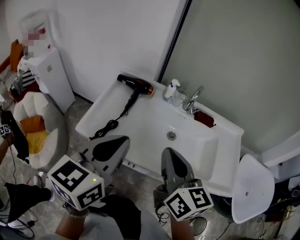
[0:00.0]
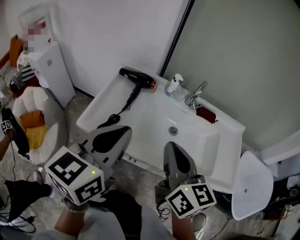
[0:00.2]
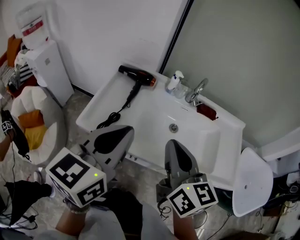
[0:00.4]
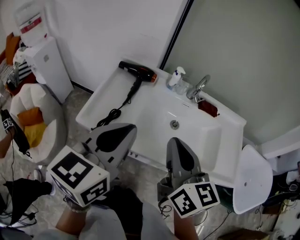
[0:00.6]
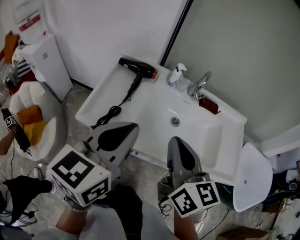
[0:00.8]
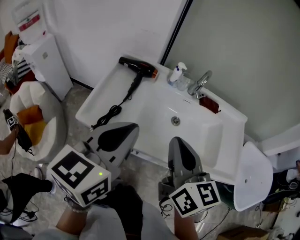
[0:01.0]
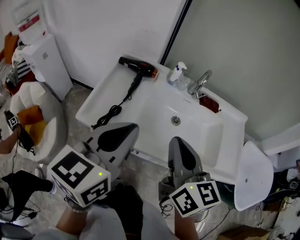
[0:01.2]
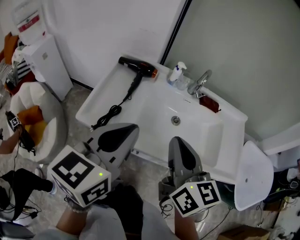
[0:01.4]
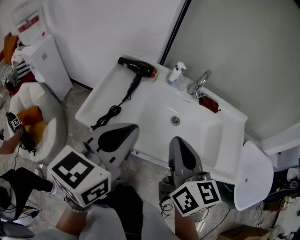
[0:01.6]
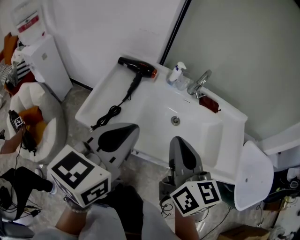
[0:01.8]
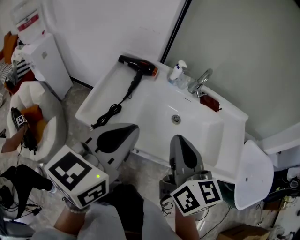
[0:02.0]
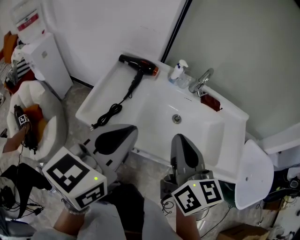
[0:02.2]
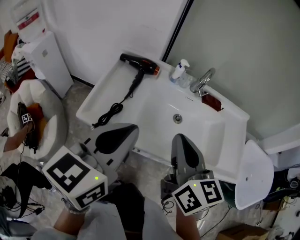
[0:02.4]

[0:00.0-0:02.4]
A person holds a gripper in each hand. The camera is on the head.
0:00.0 to 0:01.2: There are only small adjustments of the grippers.
0:01.2 to 0:02.4: Both grippers stay about where they are.

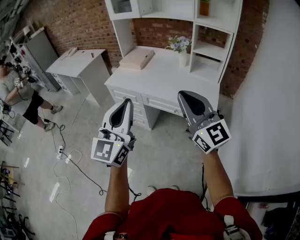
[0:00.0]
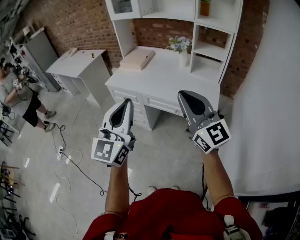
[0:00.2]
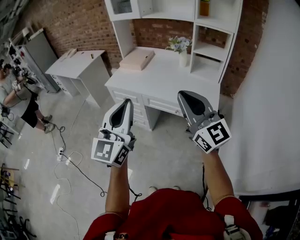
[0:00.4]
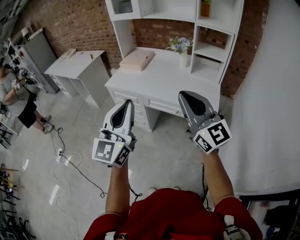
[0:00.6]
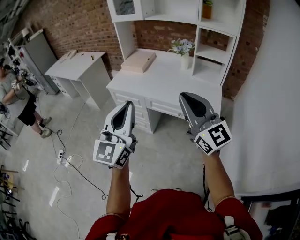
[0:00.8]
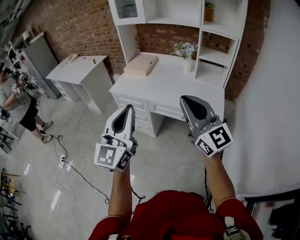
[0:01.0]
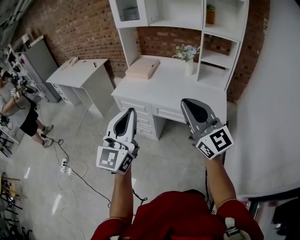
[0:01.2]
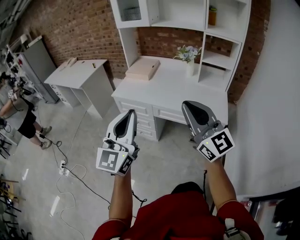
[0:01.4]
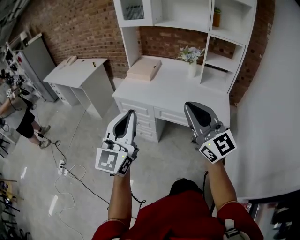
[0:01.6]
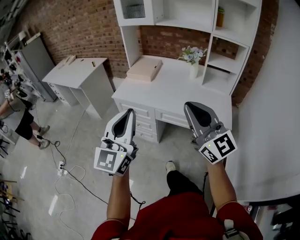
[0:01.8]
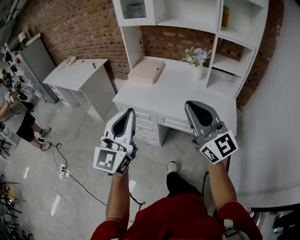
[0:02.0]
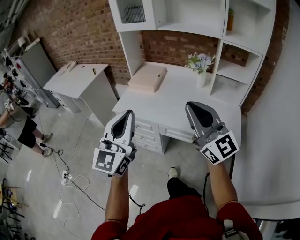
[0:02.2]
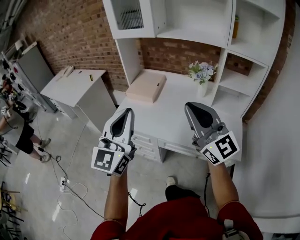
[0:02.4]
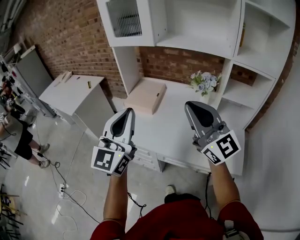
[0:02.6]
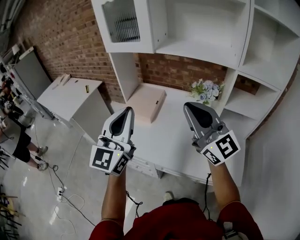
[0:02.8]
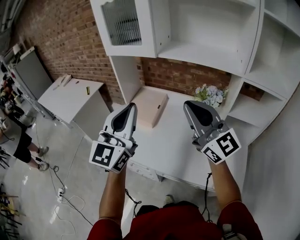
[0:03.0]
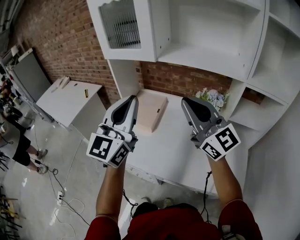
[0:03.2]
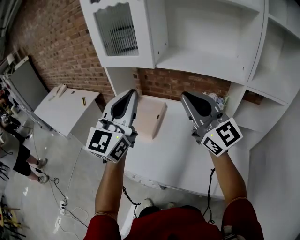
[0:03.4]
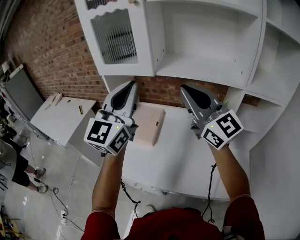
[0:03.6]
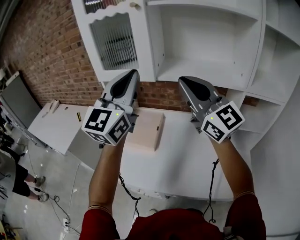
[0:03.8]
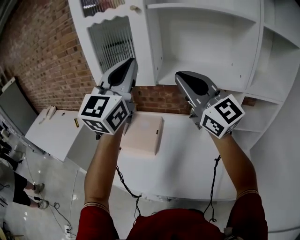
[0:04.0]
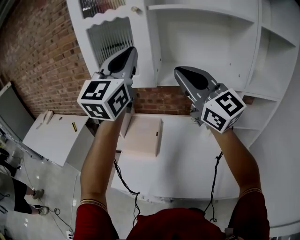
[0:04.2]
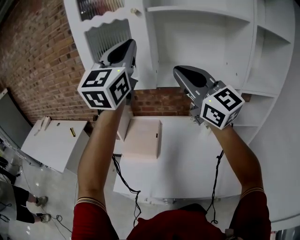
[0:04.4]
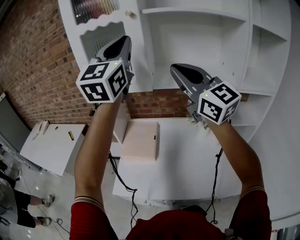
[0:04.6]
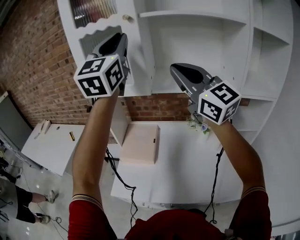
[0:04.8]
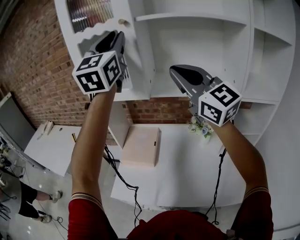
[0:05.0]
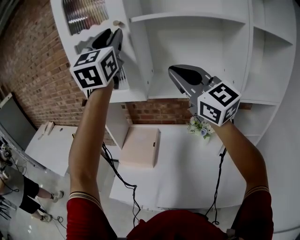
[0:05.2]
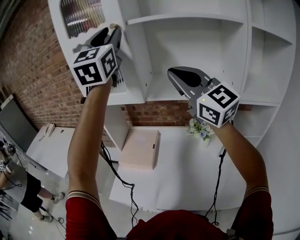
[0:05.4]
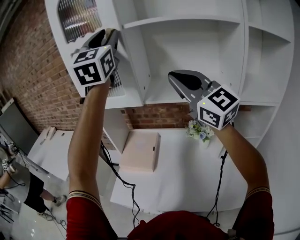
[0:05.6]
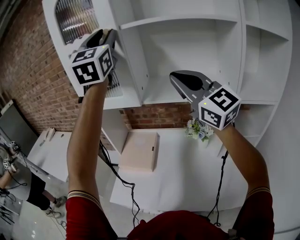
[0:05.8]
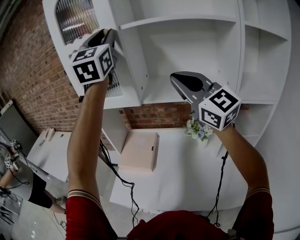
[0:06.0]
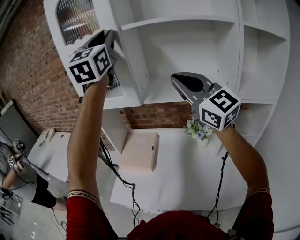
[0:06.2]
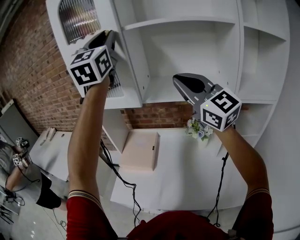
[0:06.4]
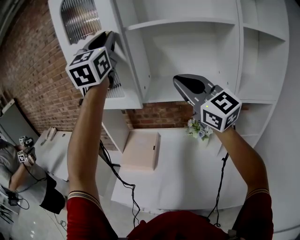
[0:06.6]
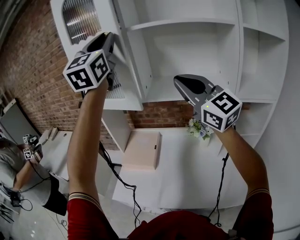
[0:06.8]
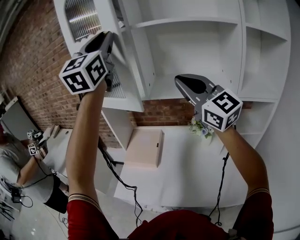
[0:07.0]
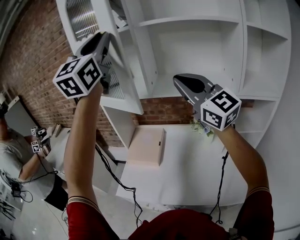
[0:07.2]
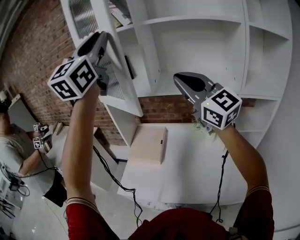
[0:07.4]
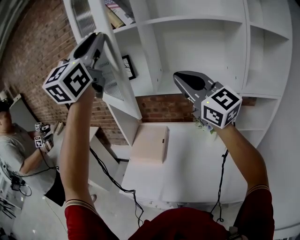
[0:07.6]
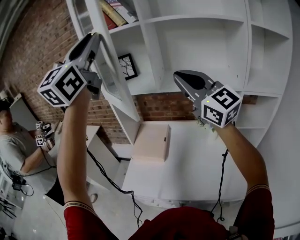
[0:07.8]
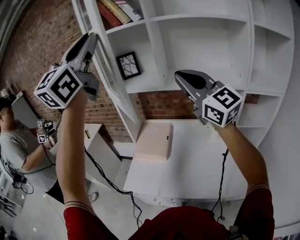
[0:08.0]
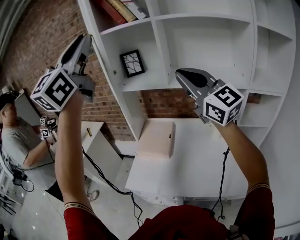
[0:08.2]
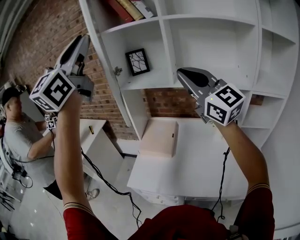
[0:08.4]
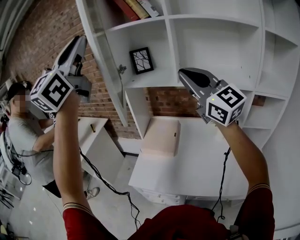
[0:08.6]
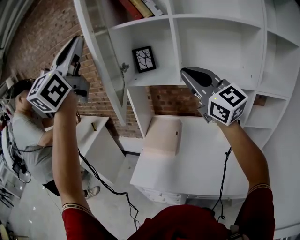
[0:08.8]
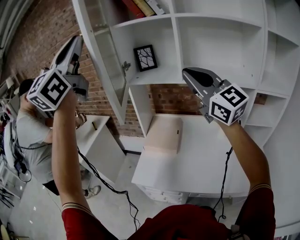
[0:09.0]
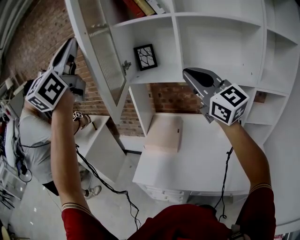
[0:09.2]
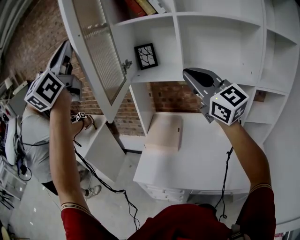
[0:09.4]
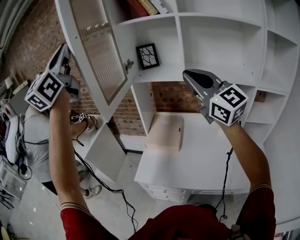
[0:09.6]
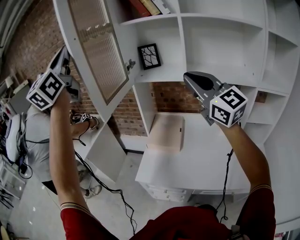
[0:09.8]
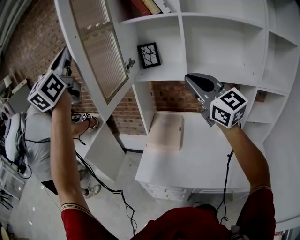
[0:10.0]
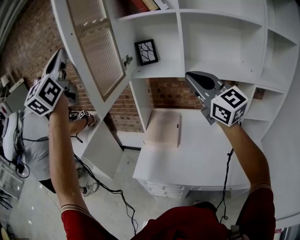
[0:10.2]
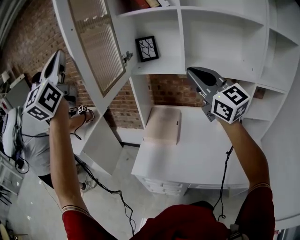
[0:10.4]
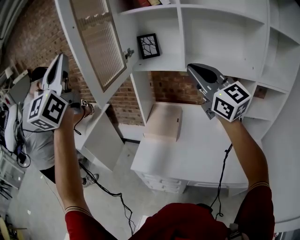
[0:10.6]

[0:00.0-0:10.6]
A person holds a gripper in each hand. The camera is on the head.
0:00.0 to 0:01.6: Both grippers travel together to the left and forward, about 15 cm.
0:01.6 to 0:03.0: Both grippers are carried forward, roughly 50 cm.
0:03.0 to 0:04.6: The right gripper moves forward and upward, some 20 cm. Meanwhile the left gripper shifts approximately 35 cm upward and forward.
0:04.6 to 0:06.0: The right gripper goes about 5 cm to the right. The left gripper is displaced upward and forward by approximately 10 cm.
0:06.0 to 0:07.6: The right gripper goes about 5 cm to the left. Meanwhile the left gripper is displaced backward and to the left by approximately 15 cm.
0:07.6 to 0:09.0: The left gripper is displaced to the left by roughly 20 cm. The right gripper travels to the left by approximately 10 cm.
0:09.0 to 0:10.6: The left gripper is displaced to the left and downward by approximately 10 cm.

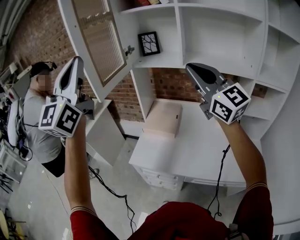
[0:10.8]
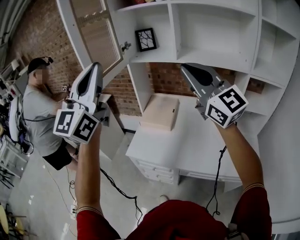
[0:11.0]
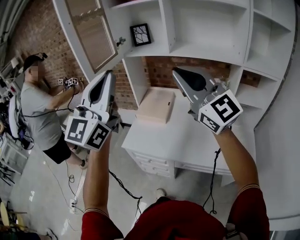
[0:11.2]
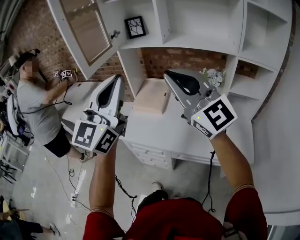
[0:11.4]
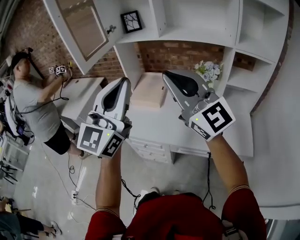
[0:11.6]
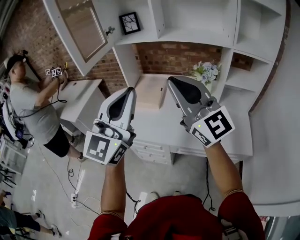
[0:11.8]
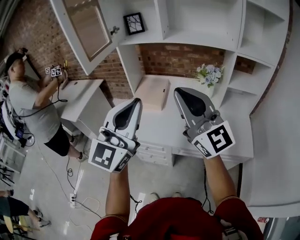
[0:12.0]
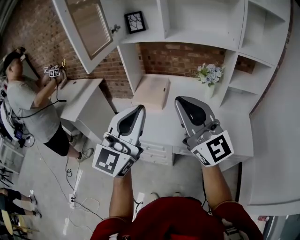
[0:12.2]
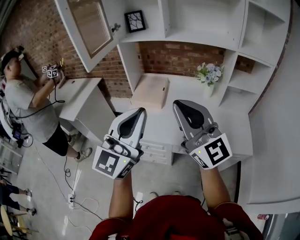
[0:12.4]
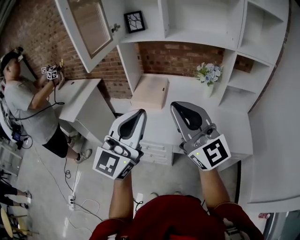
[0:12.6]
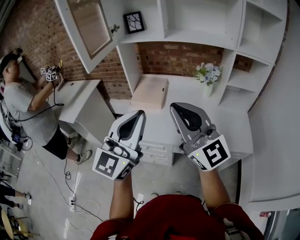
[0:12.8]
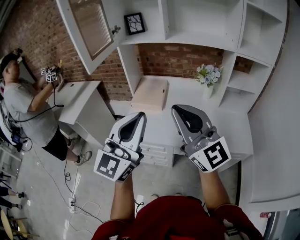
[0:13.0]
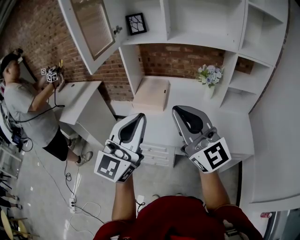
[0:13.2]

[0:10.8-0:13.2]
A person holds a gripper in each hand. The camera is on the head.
0:10.8 to 0:12.0: The left gripper moves downward, to the right and backward, some 35 cm, and swivels some 20 degrees. The right gripper is displaced backward and downward by some 20 cm.
0:12.0 to 0:13.2: The left gripper shifts by roughly 5 cm, while the right gripper travels to the left by roughly 5 cm.

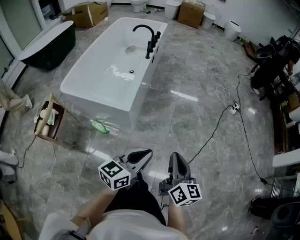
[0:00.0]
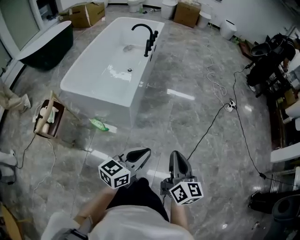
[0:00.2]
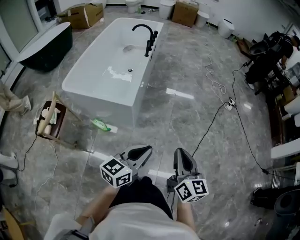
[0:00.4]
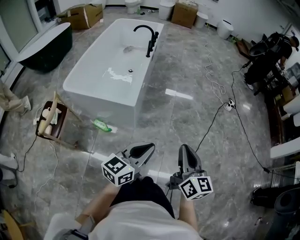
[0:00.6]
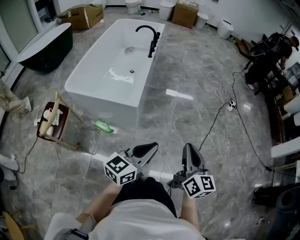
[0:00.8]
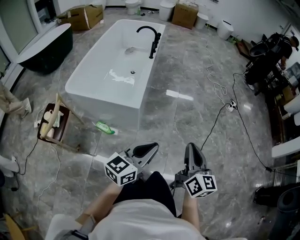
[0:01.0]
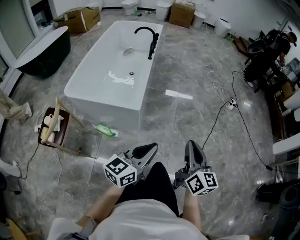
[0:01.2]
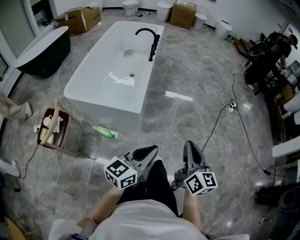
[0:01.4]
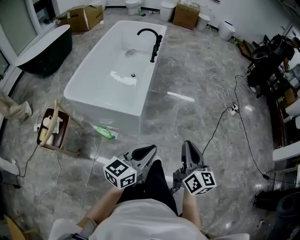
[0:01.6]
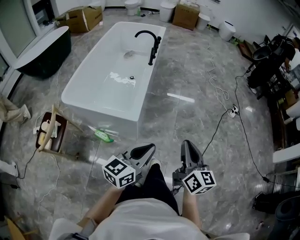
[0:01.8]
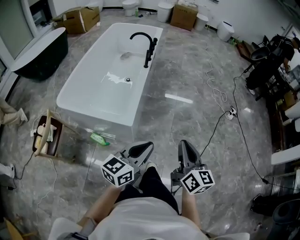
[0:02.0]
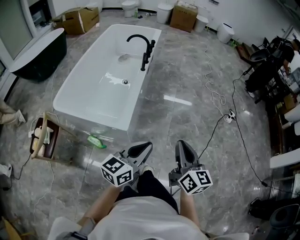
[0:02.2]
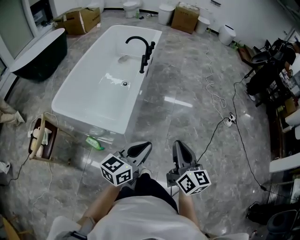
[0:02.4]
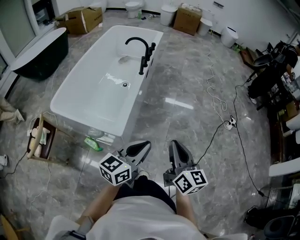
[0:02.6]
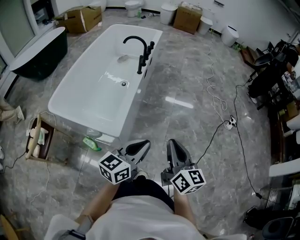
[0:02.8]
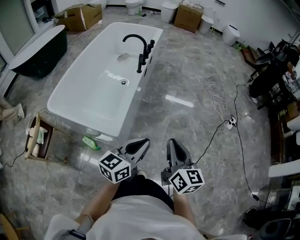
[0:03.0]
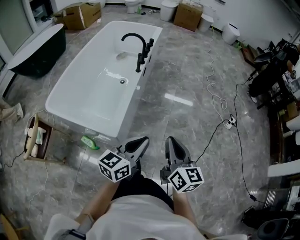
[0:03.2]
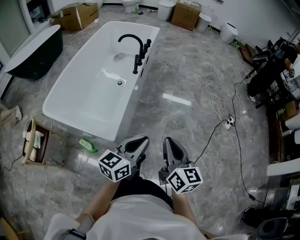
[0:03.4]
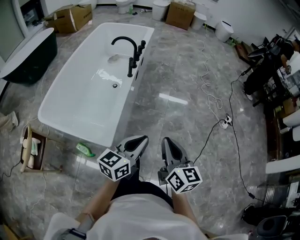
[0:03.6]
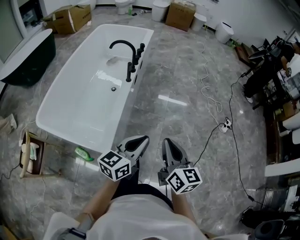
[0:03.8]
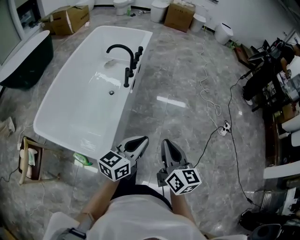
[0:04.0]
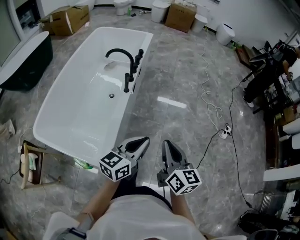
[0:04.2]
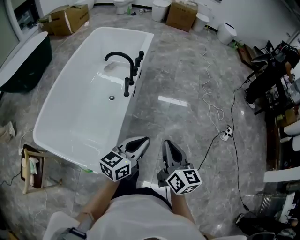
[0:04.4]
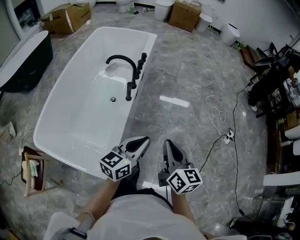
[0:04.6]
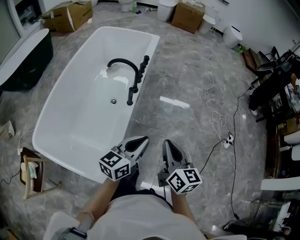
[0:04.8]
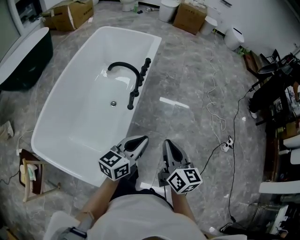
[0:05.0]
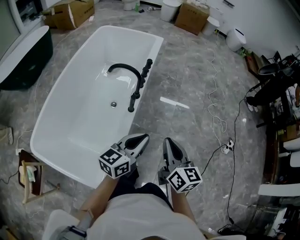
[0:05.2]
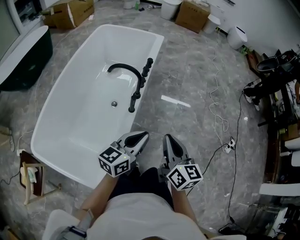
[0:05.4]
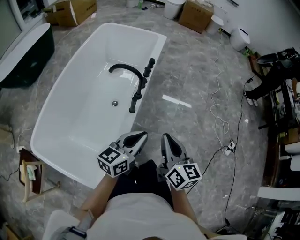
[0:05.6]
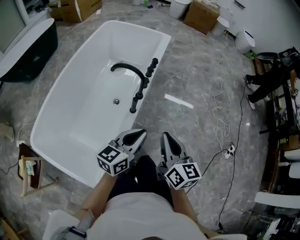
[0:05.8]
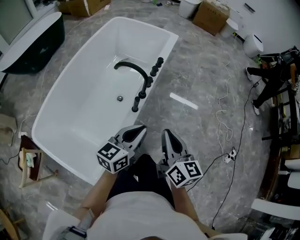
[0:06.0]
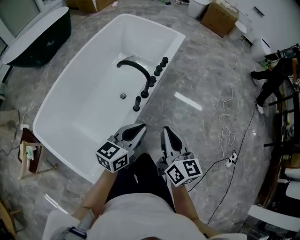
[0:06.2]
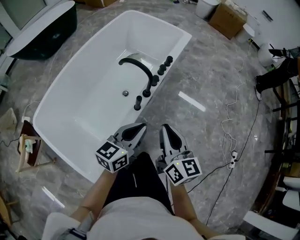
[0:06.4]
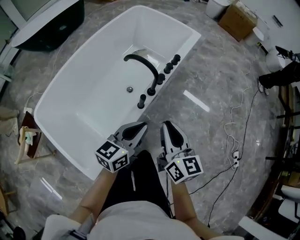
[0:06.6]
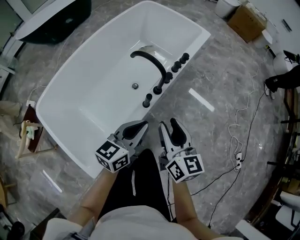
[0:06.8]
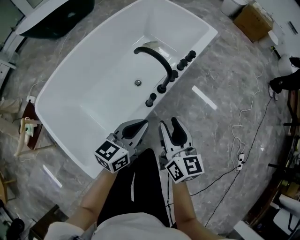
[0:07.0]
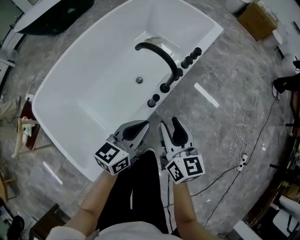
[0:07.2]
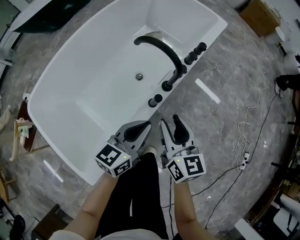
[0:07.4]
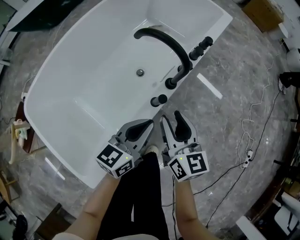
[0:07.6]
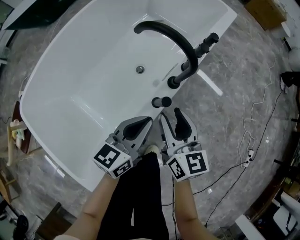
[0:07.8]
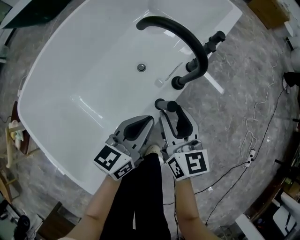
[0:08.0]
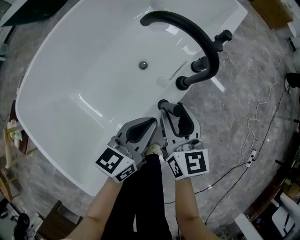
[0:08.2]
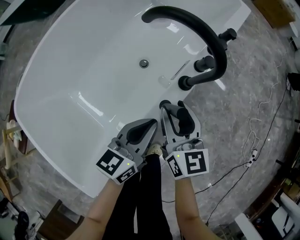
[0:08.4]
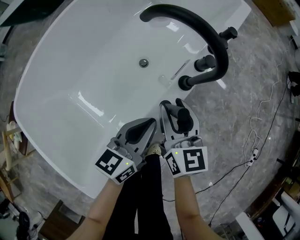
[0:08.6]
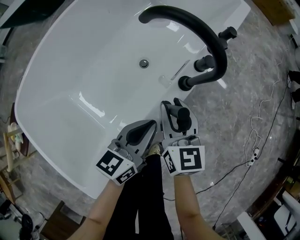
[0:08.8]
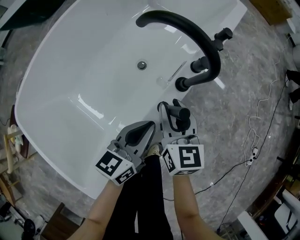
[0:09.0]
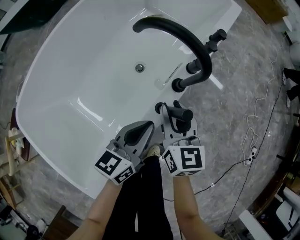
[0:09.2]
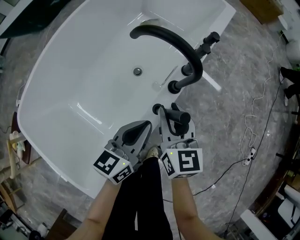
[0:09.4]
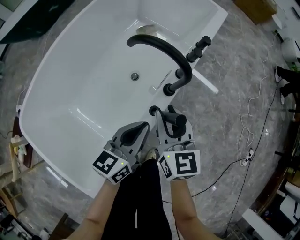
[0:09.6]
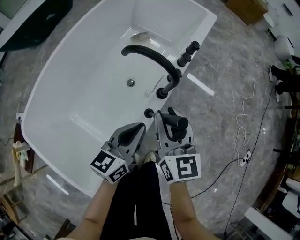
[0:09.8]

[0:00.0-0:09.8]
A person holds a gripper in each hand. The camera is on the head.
0:00.0 to 0:01.4: The two grippers go approximately 10 cm to the left.
0:01.4 to 0:02.8: Both grippers travel together forward, some 25 cm.
0:02.8 to 0:04.2: The grippers both shift forward by some 20 cm.
0:04.2 to 0:05.6: The grippers both shift forward and to the left by roughly 25 cm.
0:05.6 to 0:07.0: The grippers both shift forward and downward by some 15 cm. The right gripper changes its angle by some 20 degrees, and opens its fingers; the left gripper swivels about 20 degrees.
0:07.0 to 0:08.4: The left gripper goes about 20 cm downward; the right gripper is displaced downward, forward and to the left by roughly 25 cm.
0:08.4 to 0:09.8: Both grippers travel together upward, roughly 10 cm.
